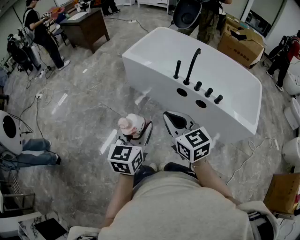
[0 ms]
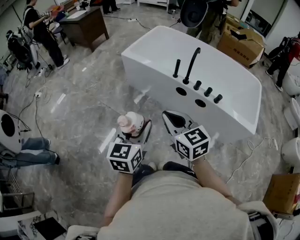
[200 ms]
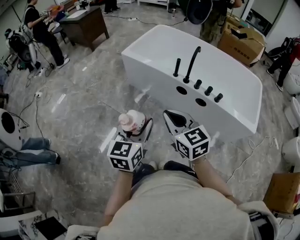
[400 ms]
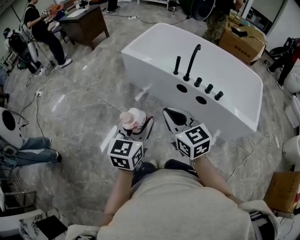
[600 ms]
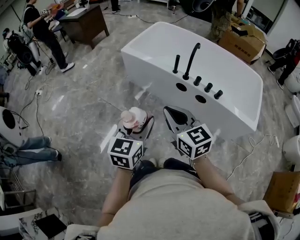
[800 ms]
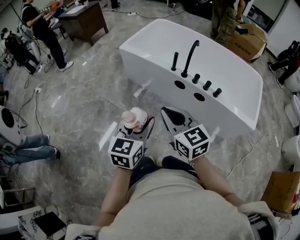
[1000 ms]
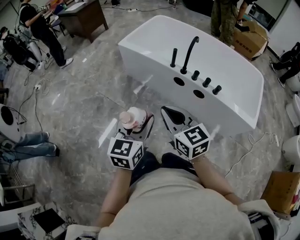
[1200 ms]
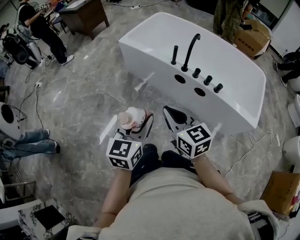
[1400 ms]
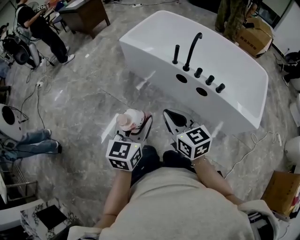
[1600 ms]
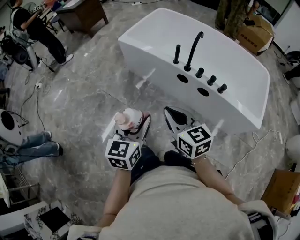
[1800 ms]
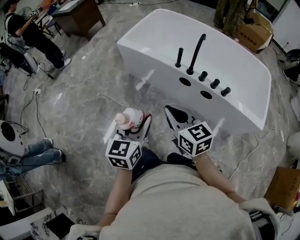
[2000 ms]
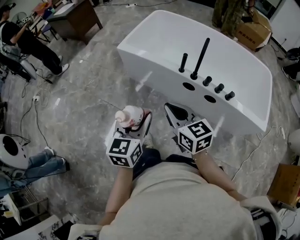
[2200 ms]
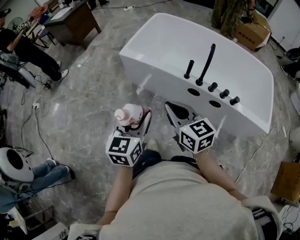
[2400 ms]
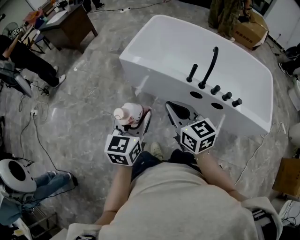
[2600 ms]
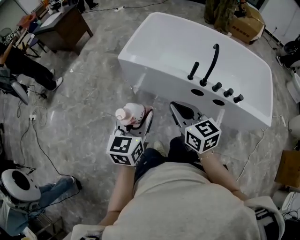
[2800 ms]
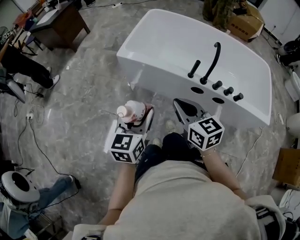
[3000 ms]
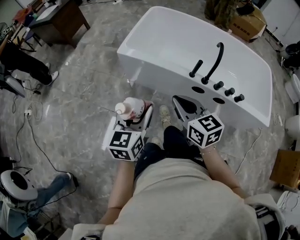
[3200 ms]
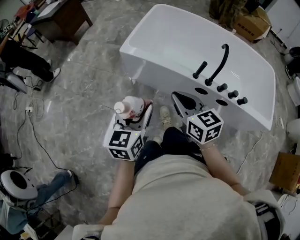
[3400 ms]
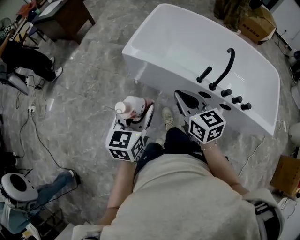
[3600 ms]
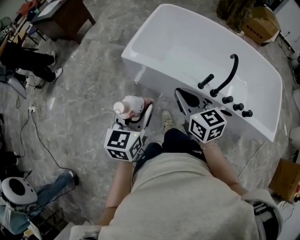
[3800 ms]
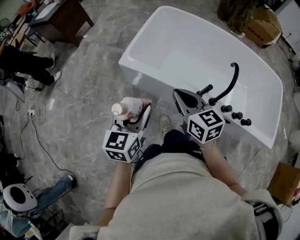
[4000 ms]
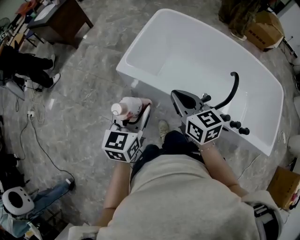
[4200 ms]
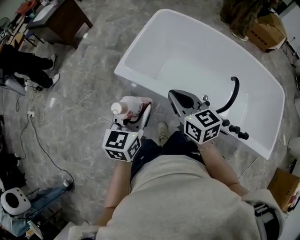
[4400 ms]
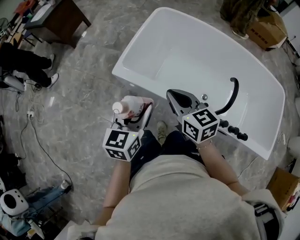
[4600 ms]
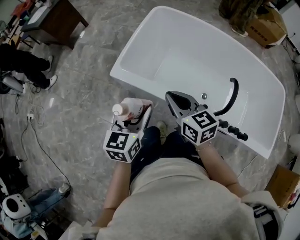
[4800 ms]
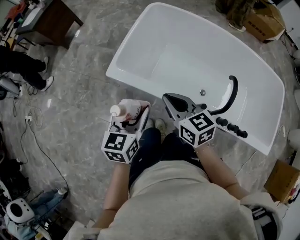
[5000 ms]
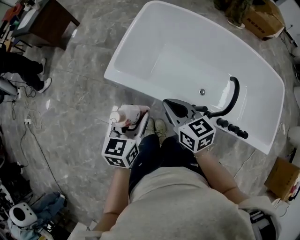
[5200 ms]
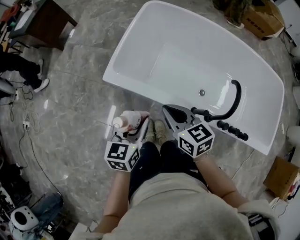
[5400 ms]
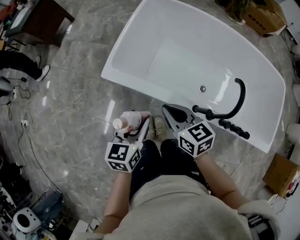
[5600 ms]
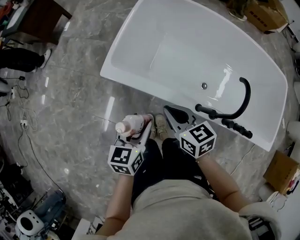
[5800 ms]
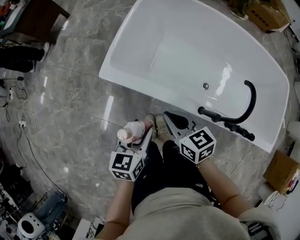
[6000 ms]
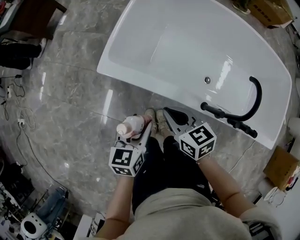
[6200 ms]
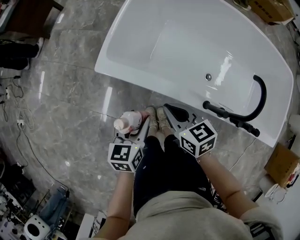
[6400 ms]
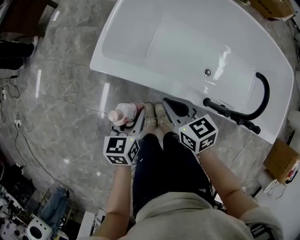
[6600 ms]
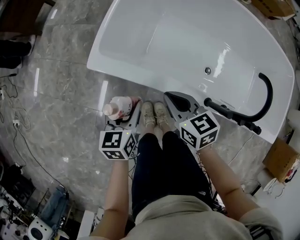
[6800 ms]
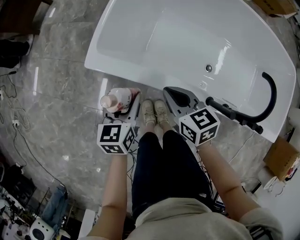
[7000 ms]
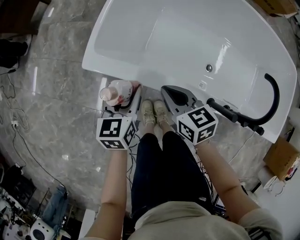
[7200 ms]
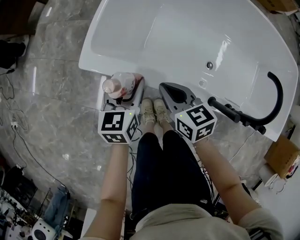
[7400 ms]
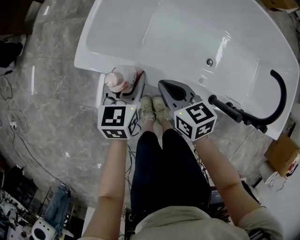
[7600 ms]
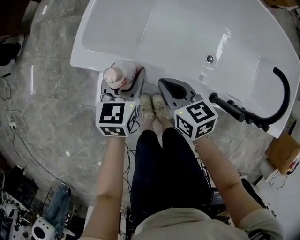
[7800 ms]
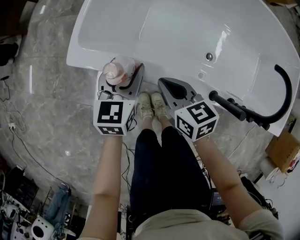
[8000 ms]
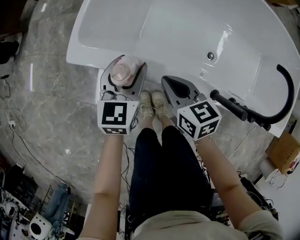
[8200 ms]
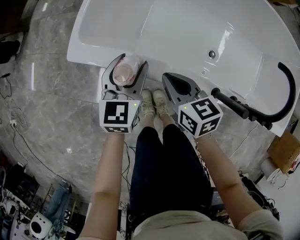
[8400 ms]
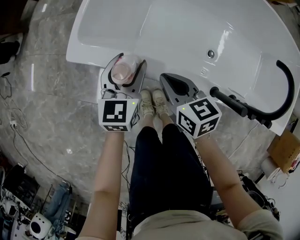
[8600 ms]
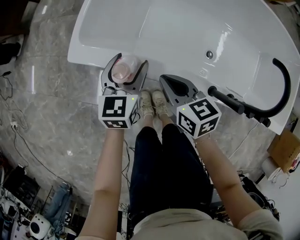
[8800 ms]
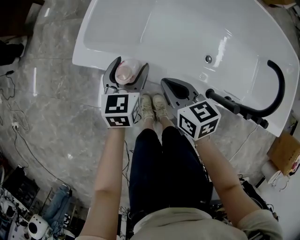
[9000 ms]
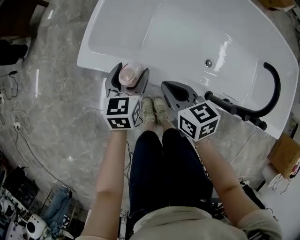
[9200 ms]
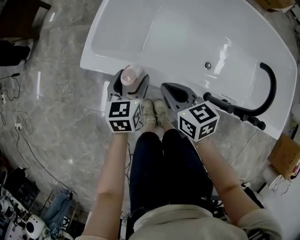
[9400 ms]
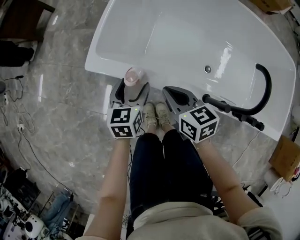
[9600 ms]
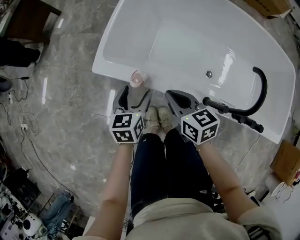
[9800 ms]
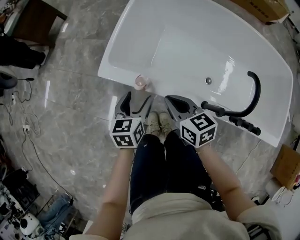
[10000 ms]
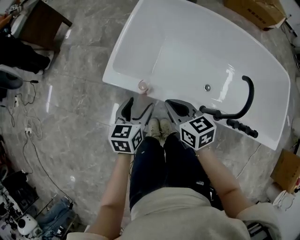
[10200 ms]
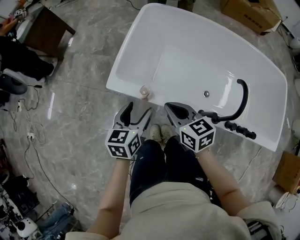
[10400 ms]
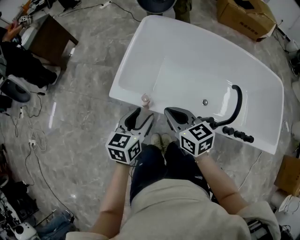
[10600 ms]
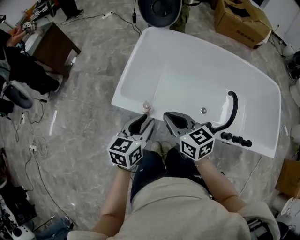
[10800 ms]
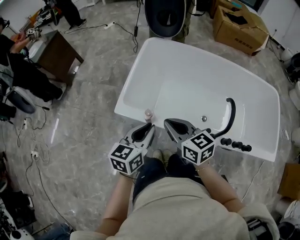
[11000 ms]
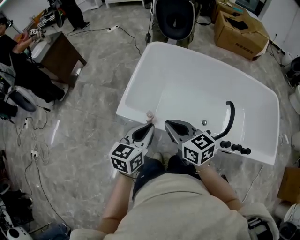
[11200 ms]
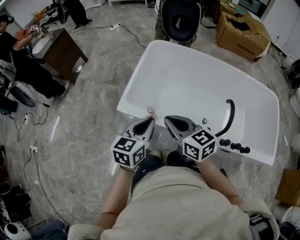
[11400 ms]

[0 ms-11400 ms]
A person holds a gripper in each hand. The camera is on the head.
0 ms to 1400 ms: The two grippers go roughly 5 cm to the right.
1400 ms to 2800 ms: The grippers both shift forward and to the left by about 35 cm.
2800 ms to 4200 ms: The grippers both shift forward by approximately 30 cm.
4200 ms to 5600 ms: Both grippers travel together downward and forward, about 15 cm.
5600 ms to 7200 ms: Both grippers move downward and forward, about 20 cm.
7200 ms to 8600 ms: The right gripper goes about 5 cm downward, while the left gripper shifts roughly 5 cm to the right.
8600 ms to 10000 ms: The left gripper shifts some 10 cm upward and backward. Meanwhile the right gripper shifts some 15 cm upward.
10000 ms to 11400 ms: Both grippers travel together upward, roughly 20 cm. The left gripper closes up.

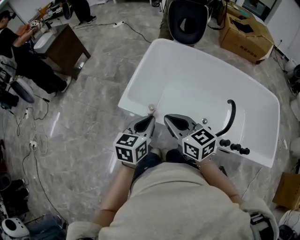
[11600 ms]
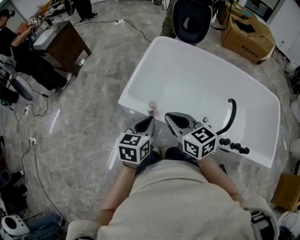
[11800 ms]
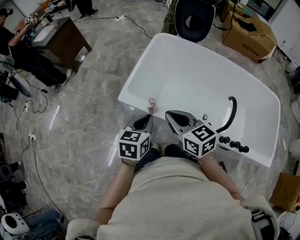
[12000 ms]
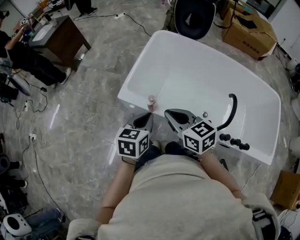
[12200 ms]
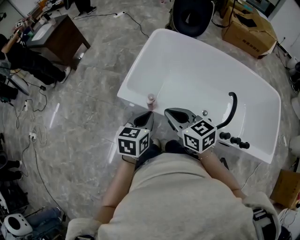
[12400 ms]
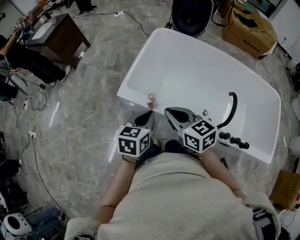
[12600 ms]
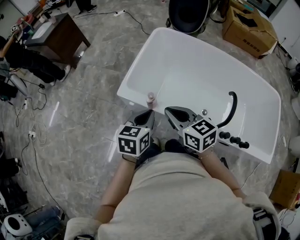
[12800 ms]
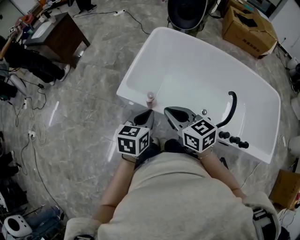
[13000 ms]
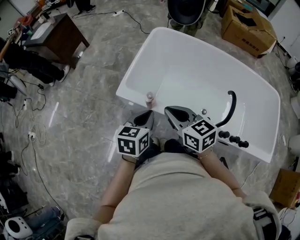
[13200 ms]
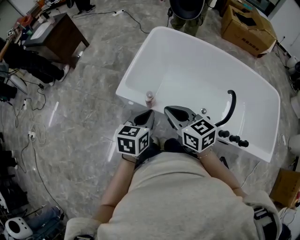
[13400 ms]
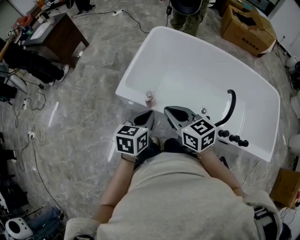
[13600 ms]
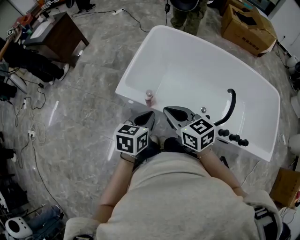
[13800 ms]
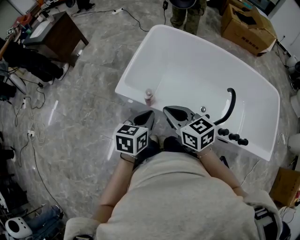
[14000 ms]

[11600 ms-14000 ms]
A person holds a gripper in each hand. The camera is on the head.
11600 ms to 14000 ms: The grippers move only a little.

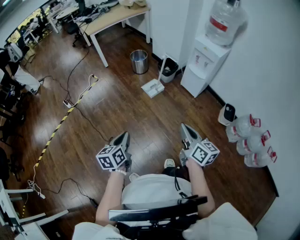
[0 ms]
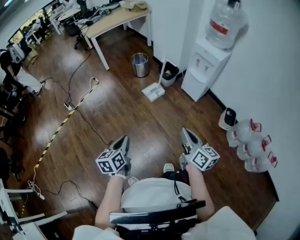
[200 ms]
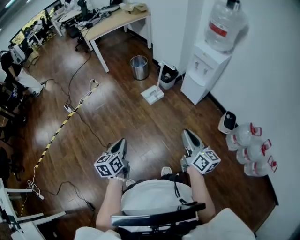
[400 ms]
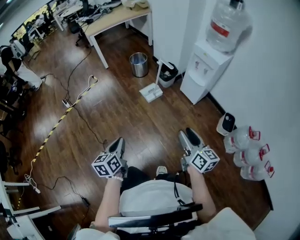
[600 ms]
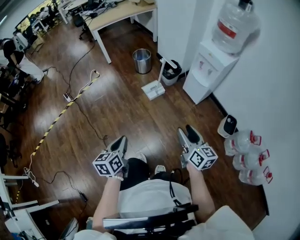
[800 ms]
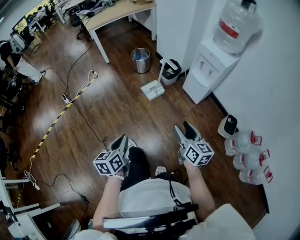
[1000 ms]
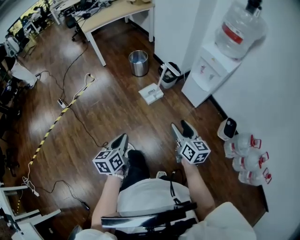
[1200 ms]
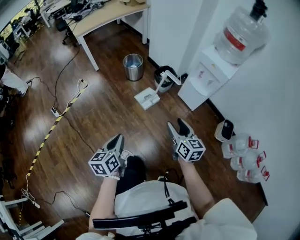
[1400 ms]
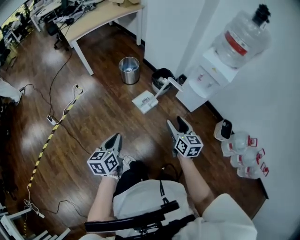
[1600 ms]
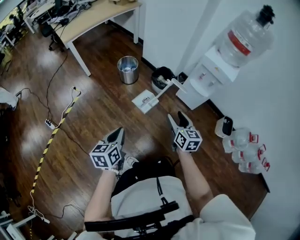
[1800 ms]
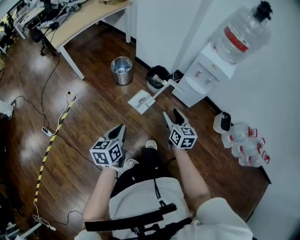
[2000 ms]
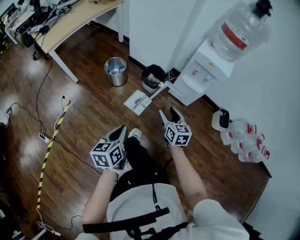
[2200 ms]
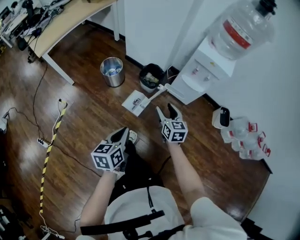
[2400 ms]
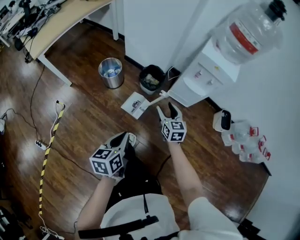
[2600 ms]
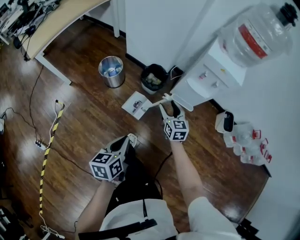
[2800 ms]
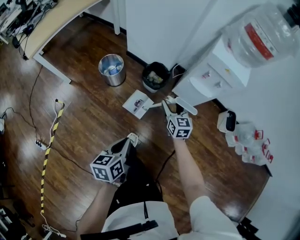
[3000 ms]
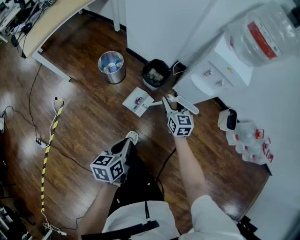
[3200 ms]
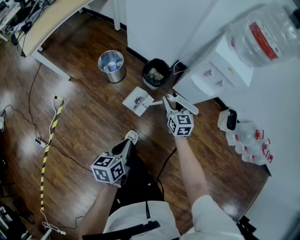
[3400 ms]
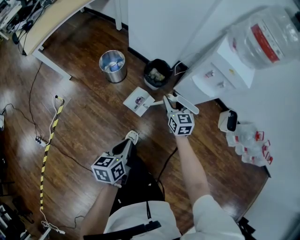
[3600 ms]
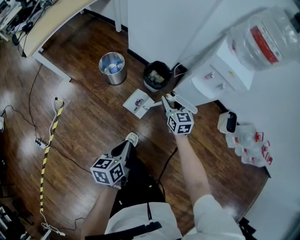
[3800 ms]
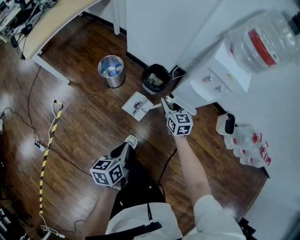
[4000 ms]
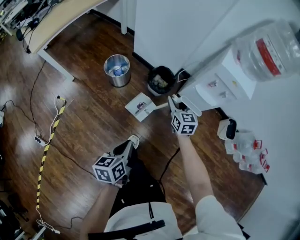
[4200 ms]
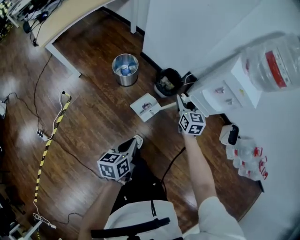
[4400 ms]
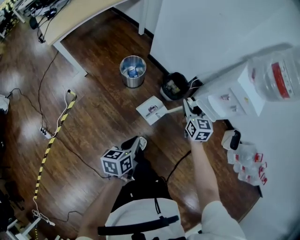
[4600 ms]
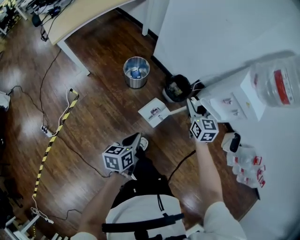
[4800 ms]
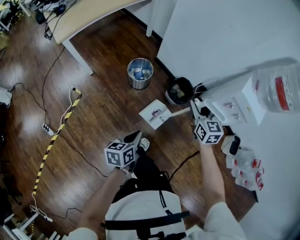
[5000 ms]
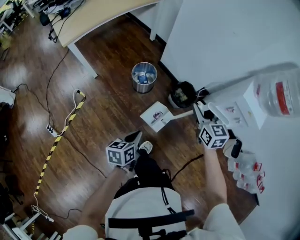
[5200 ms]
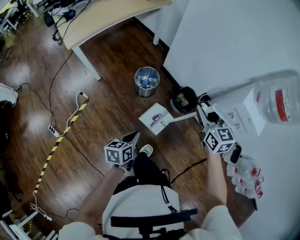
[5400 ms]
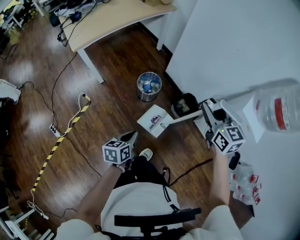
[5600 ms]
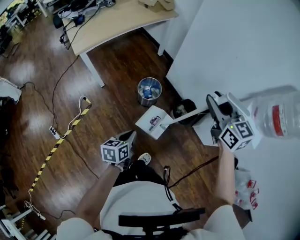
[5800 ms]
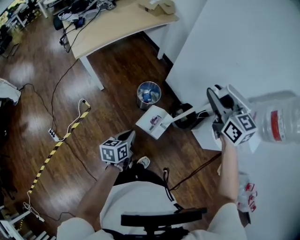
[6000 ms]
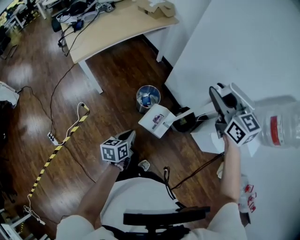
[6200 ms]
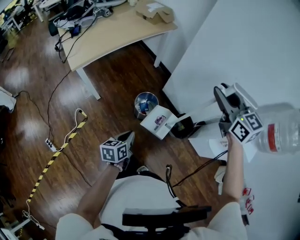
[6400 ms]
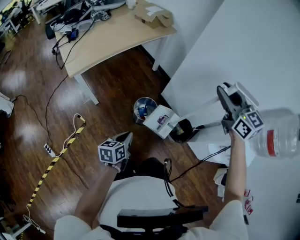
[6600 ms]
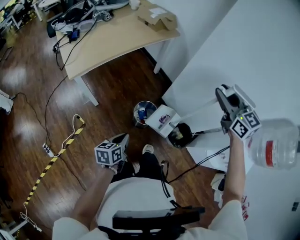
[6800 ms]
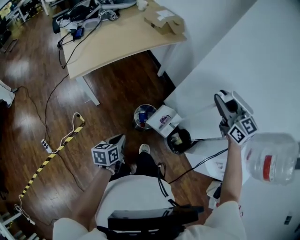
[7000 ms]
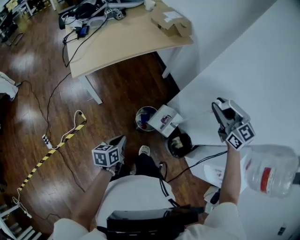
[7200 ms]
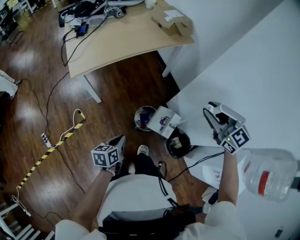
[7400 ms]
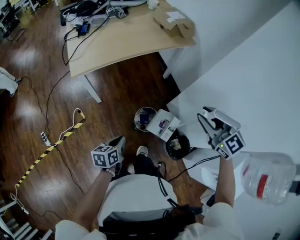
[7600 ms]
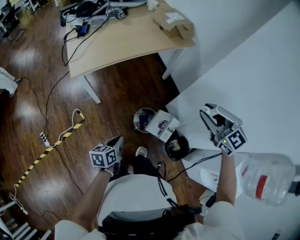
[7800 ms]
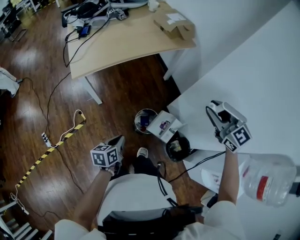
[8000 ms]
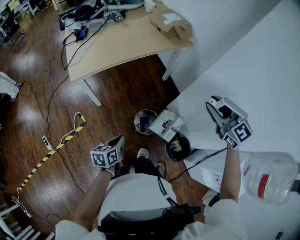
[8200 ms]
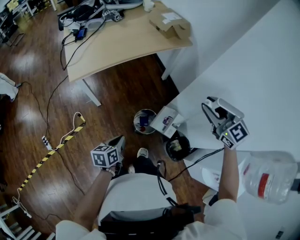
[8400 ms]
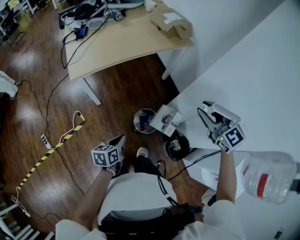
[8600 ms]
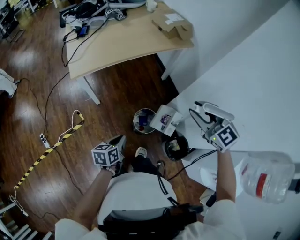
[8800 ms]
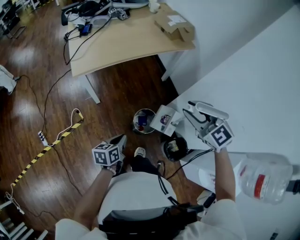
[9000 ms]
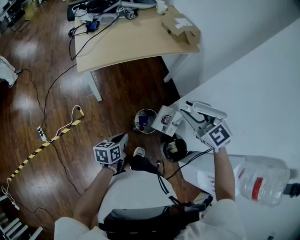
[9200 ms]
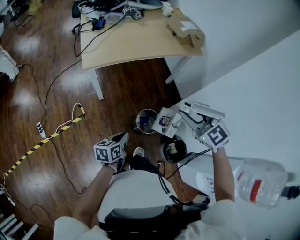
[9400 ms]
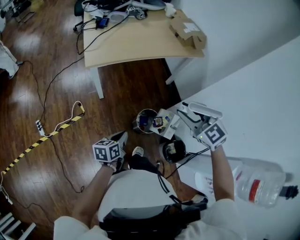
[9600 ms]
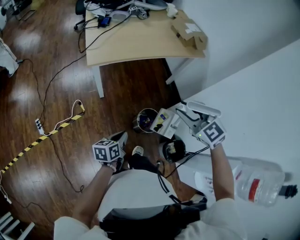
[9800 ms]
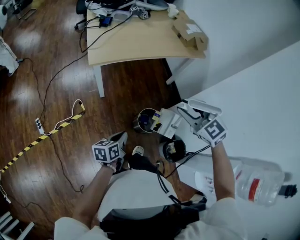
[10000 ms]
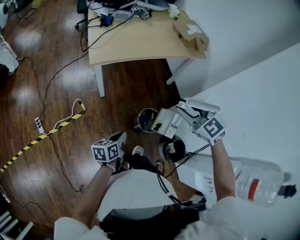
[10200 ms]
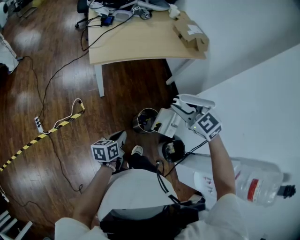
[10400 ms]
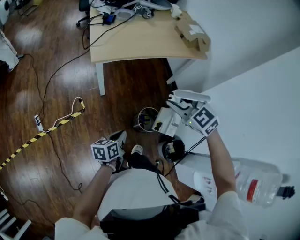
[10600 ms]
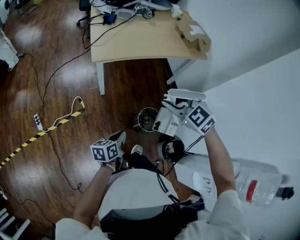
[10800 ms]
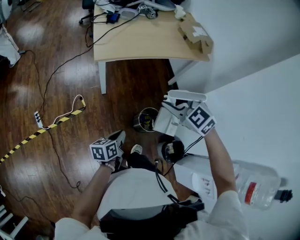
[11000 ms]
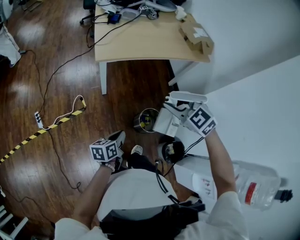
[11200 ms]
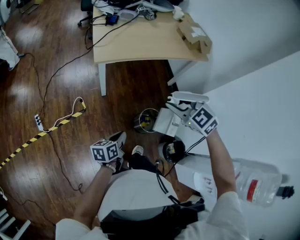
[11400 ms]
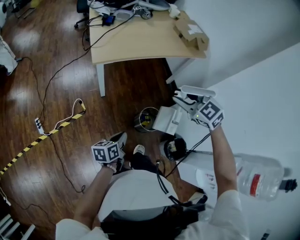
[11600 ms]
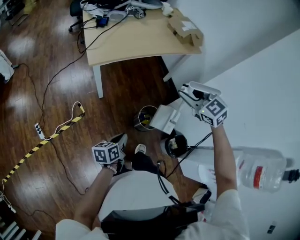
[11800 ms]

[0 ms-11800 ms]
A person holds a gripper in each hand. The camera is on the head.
0 ms to 1400 ms: The grippers both shift forward by approximately 25 cm. The right gripper opens.
1400 ms to 3000 ms: The left gripper shifts by approximately 30 cm, and changes its angle by approximately 30 degrees. The right gripper moves approximately 40 cm, and rotates roughly 20 degrees.
3000 ms to 4400 ms: The right gripper travels forward by approximately 10 cm. The left gripper shifts by about 5 cm.
4400 ms to 6000 ms: The right gripper travels upward and to the left by about 40 cm, and changes its angle by roughly 30 degrees. Meanwhile the left gripper travels to the left and forward by roughly 20 cm.
6000 ms to 7400 ms: Both grippers travel together forward, approximately 20 cm. The right gripper turns by about 30 degrees.
7400 ms to 8800 ms: The right gripper moves about 5 cm.
8800 ms to 10400 ms: The left gripper goes some 10 cm to the left. The right gripper shifts some 20 cm to the left, and turns by about 20 degrees.
10400 ms to 11800 ms: The right gripper travels to the left and back again, approximately 5 cm each way.
